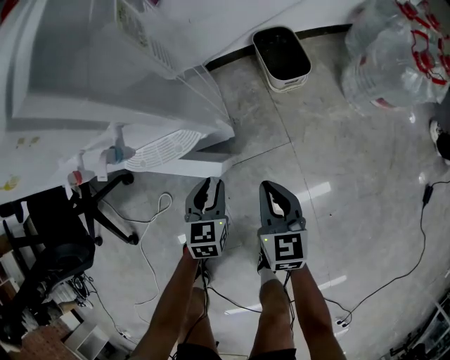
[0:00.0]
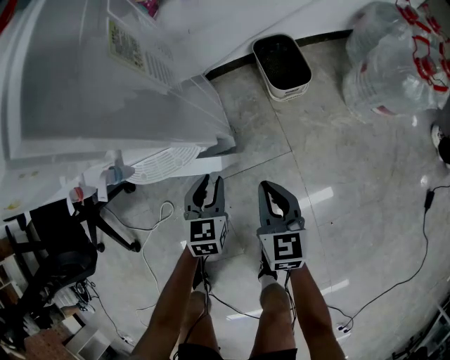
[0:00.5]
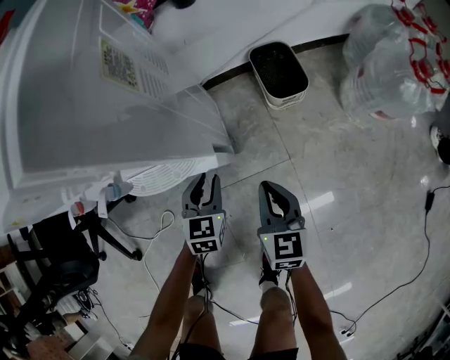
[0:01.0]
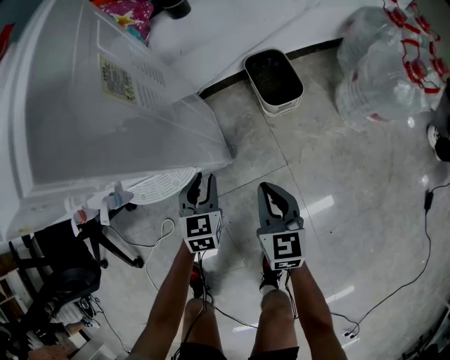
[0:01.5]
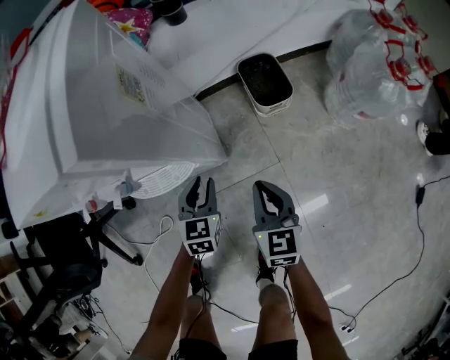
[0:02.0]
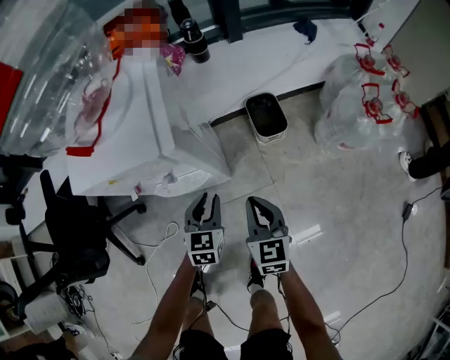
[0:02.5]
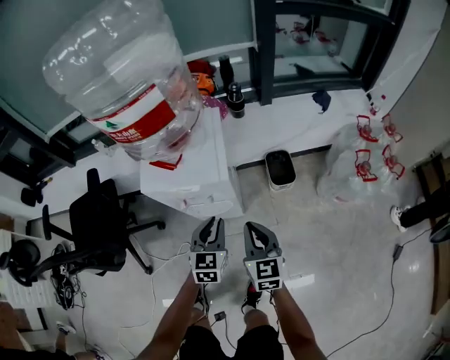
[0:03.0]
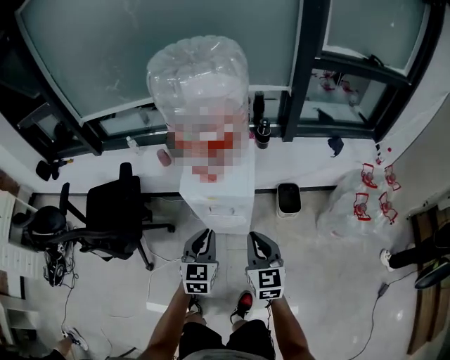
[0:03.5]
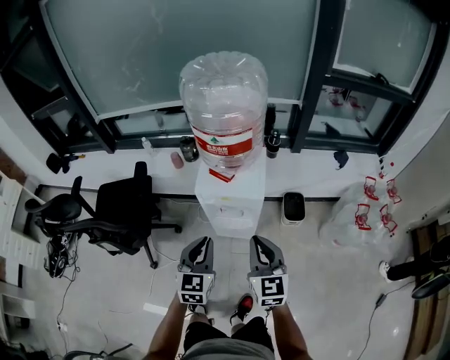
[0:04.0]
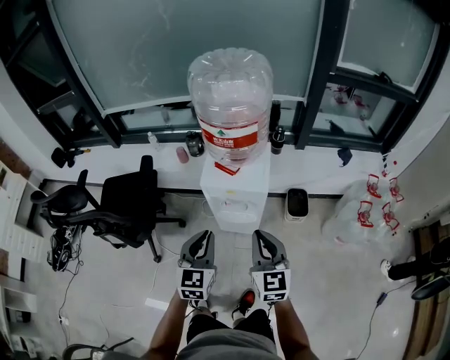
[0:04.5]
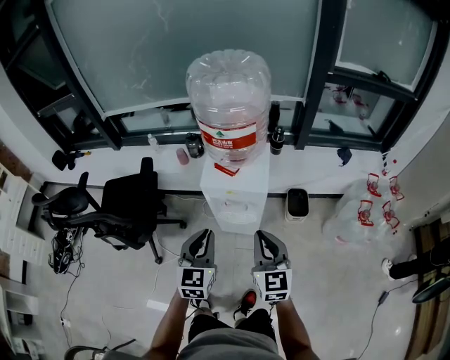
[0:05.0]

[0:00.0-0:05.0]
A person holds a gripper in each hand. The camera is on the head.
0:00.0 to 0:02.5: The grippers both shift upward by approximately 20 cm.
0:02.5 to 0:05.0: Both grippers move upward, some 40 cm. The left gripper changes its angle by approximately 30 degrees. Meanwhile the right gripper rotates some 30 degrees.

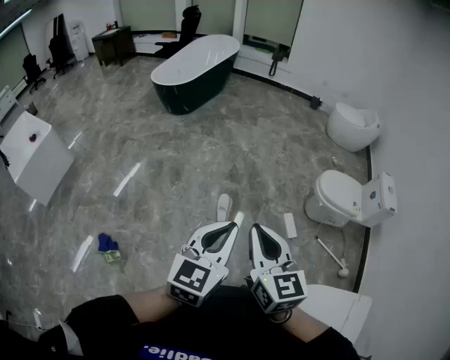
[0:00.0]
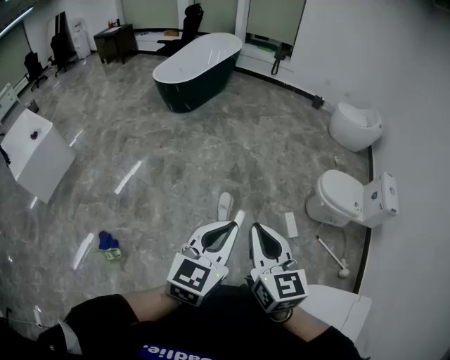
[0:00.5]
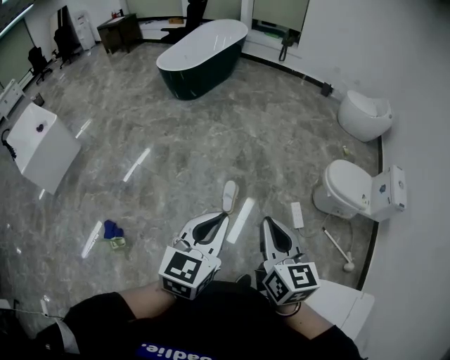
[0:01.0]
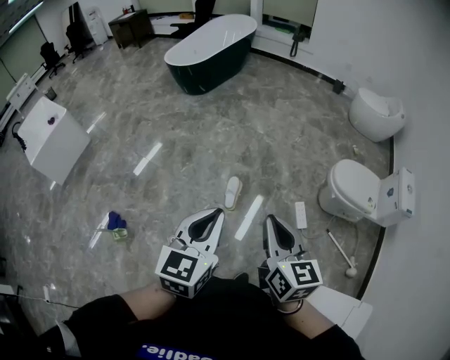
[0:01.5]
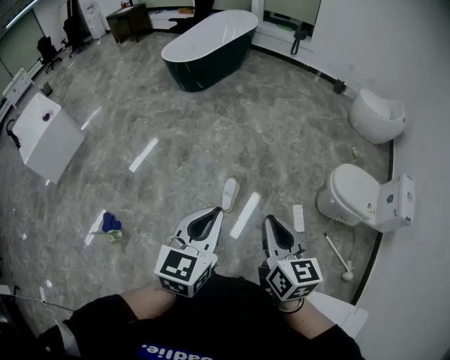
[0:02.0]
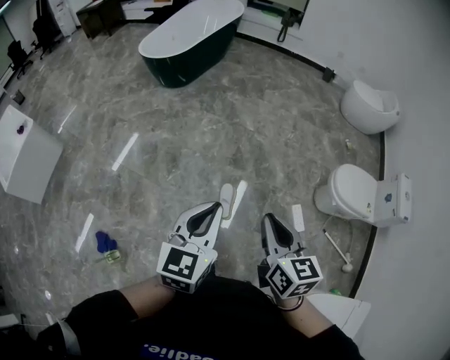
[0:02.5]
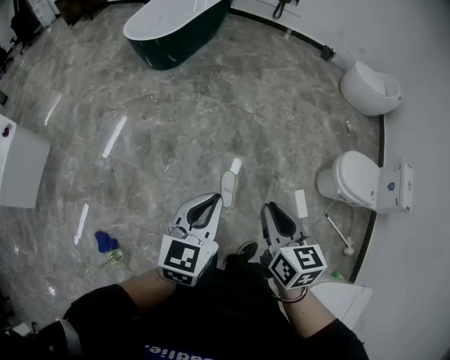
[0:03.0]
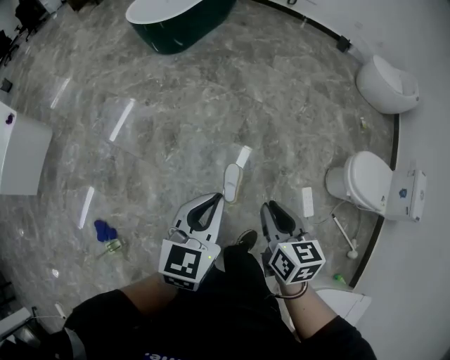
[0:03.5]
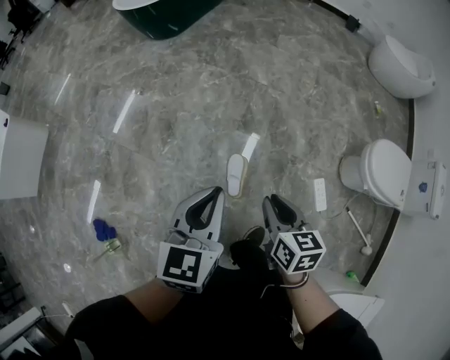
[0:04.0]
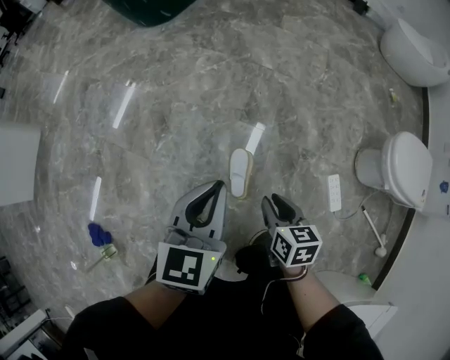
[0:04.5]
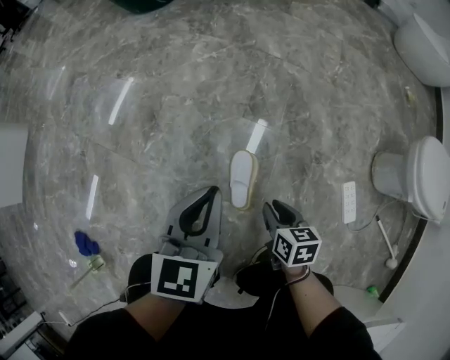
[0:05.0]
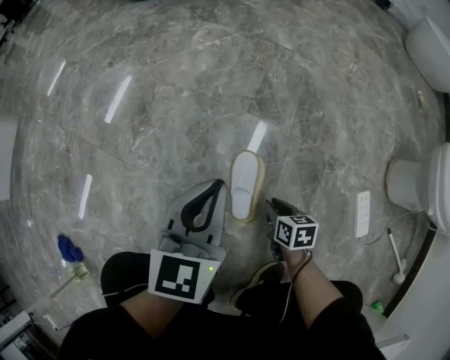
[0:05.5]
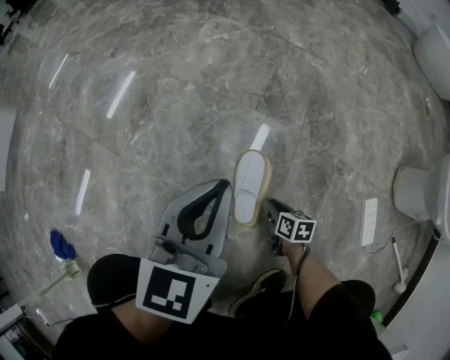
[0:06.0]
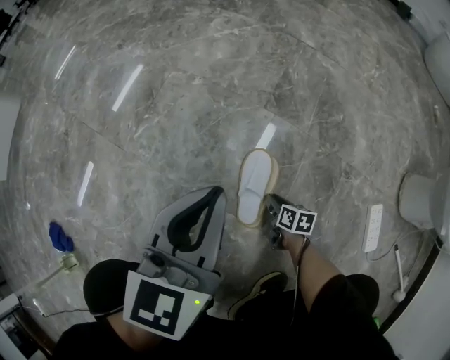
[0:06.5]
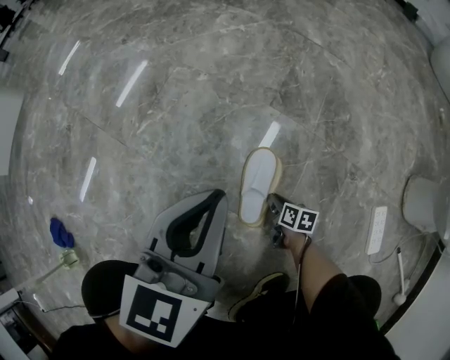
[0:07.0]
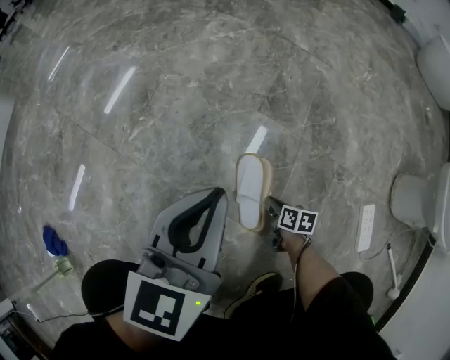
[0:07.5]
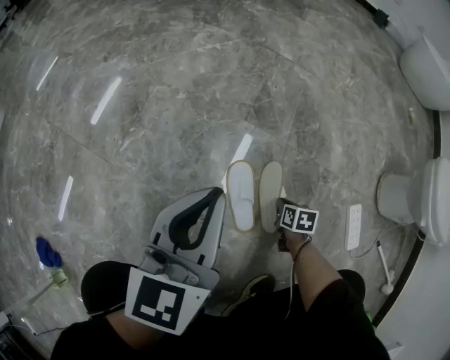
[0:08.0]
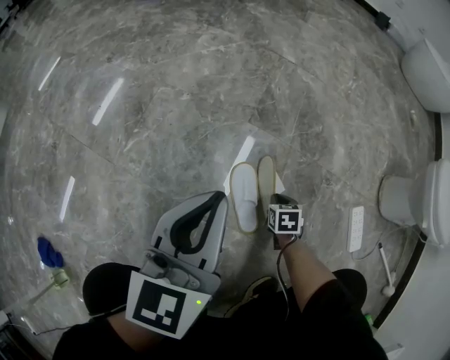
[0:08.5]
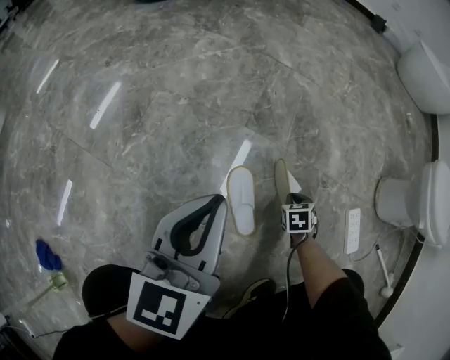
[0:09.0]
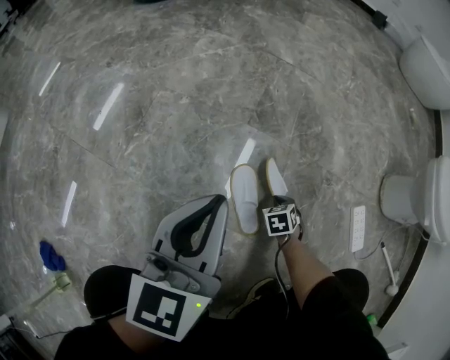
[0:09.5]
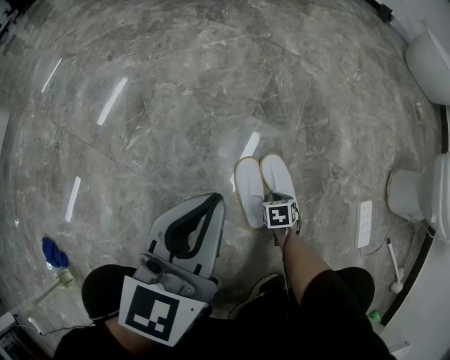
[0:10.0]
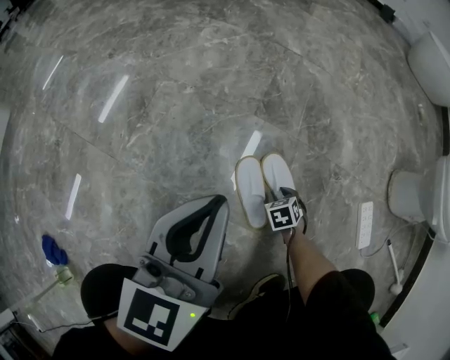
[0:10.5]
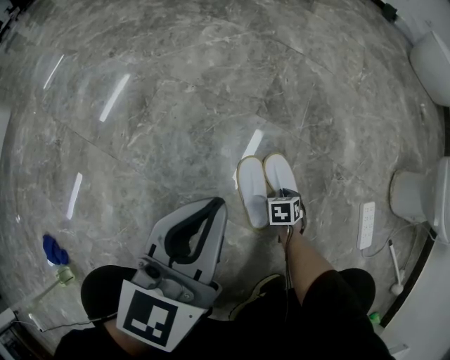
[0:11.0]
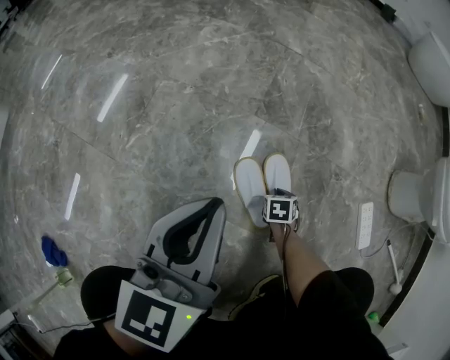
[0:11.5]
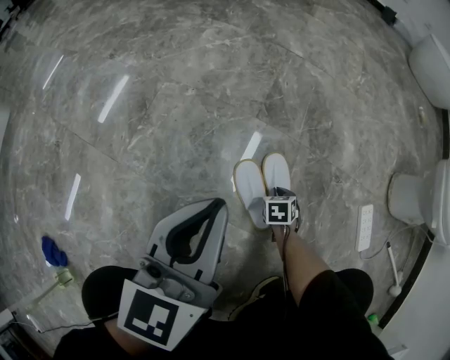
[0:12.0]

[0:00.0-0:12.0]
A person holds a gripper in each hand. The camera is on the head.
0:00.0 to 0:02.0: The left gripper is displaced forward by about 10 cm. Meanwhile the right gripper is displaced to the right, forward and downward by some 15 cm.
0:02.0 to 0:04.0: The right gripper shifts approximately 40 cm downward and forward, and swivels approximately 20 degrees. The left gripper shifts roughly 40 cm forward and downward.
0:04.0 to 0:06.0: The right gripper moves downward, roughly 70 cm, and changes its angle by about 20 degrees. The left gripper moves downward, approximately 40 cm.
0:06.0 to 0:08.0: The right gripper travels to the right by roughly 10 cm.
0:08.0 to 0:10.0: The right gripper shifts by some 5 cm, and swivels about 20 degrees.
0:10.0 to 0:12.0: The right gripper opens and closes again.

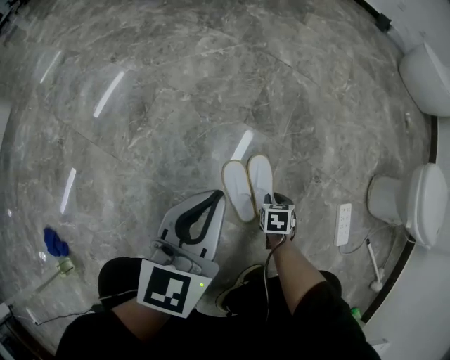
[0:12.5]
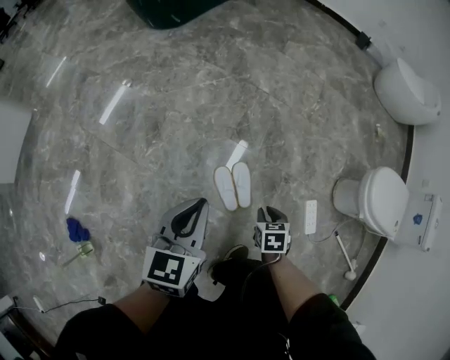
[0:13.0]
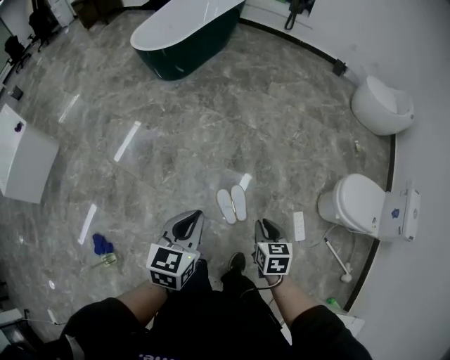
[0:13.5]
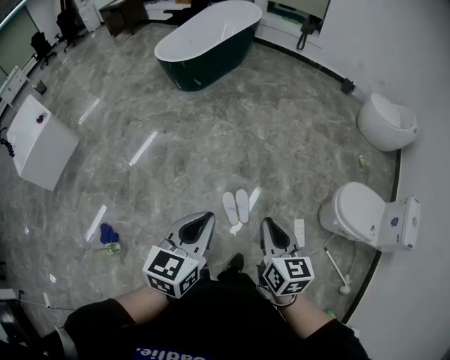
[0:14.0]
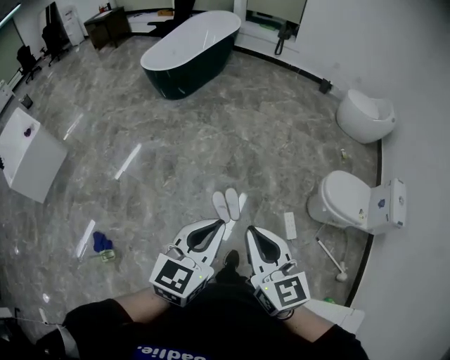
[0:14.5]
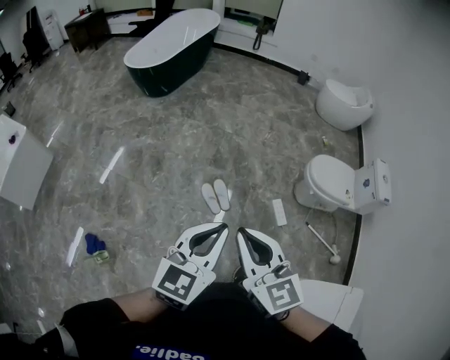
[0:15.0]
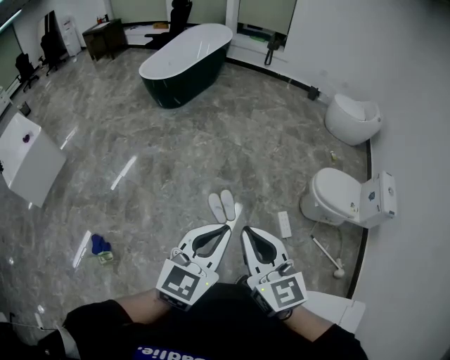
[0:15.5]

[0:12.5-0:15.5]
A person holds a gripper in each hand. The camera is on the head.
0:12.5 to 0:14.0: The left gripper heads upward, covering roughly 60 cm. The right gripper goes about 80 cm upward, and points its fingers roughly 50 degrees further upward.
0:14.0 to 0:15.5: The left gripper shifts approximately 20 cm backward, and rotates roughly 20 degrees, while the right gripper moves backward and upward, about 25 cm, and swivels approximately 20 degrees.

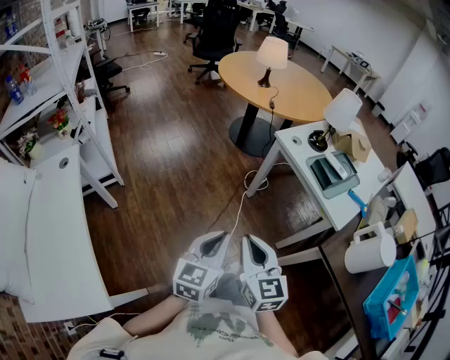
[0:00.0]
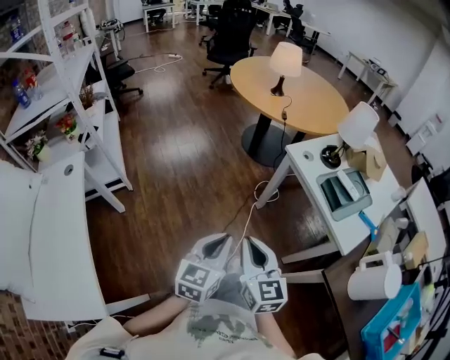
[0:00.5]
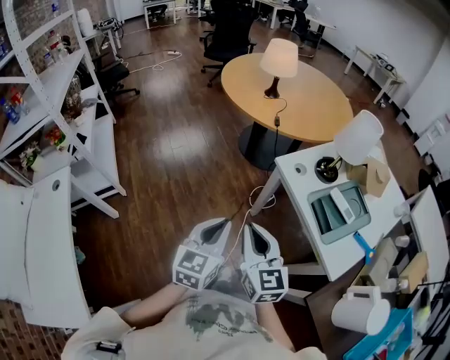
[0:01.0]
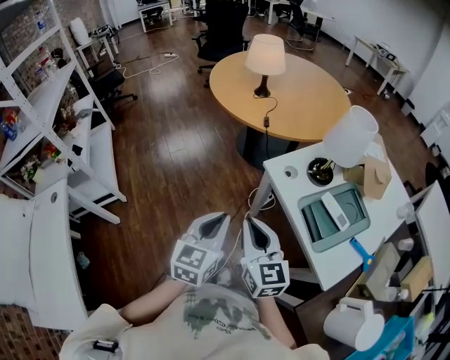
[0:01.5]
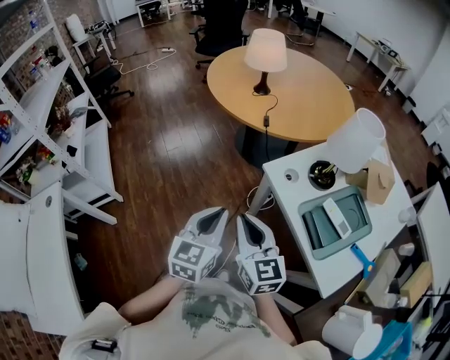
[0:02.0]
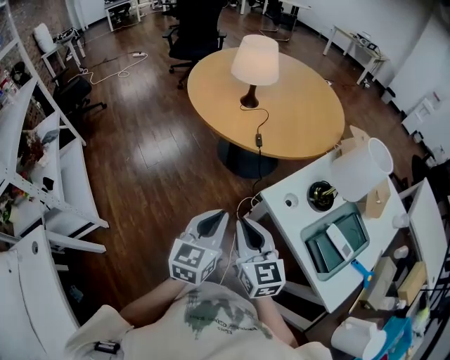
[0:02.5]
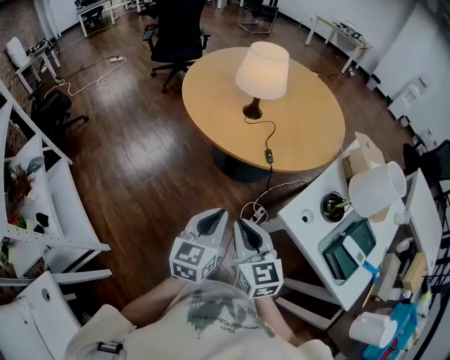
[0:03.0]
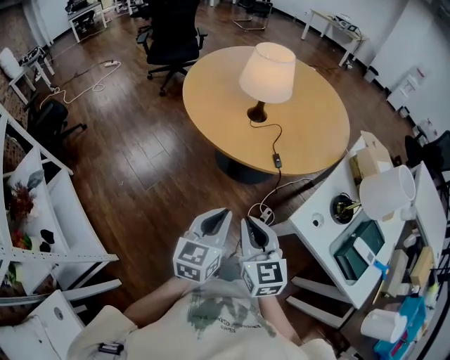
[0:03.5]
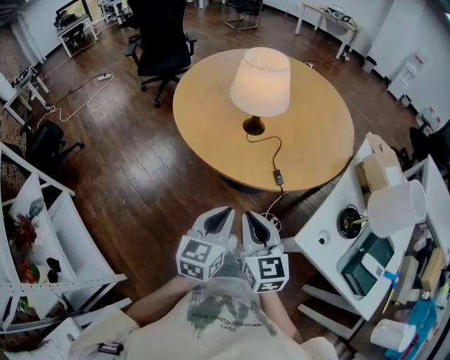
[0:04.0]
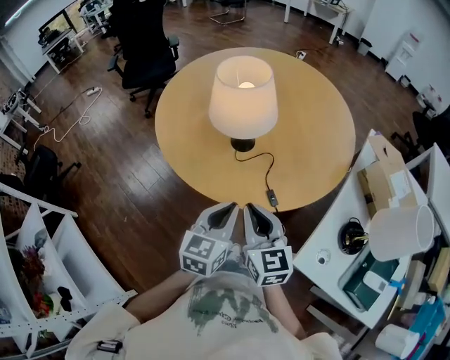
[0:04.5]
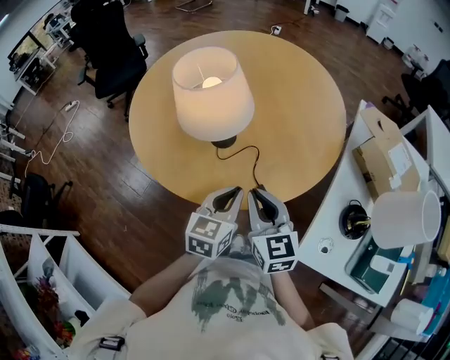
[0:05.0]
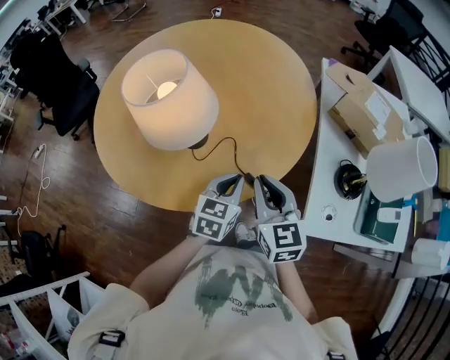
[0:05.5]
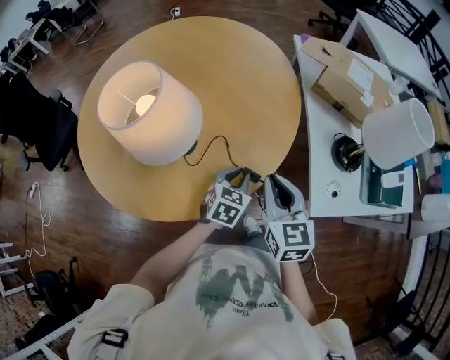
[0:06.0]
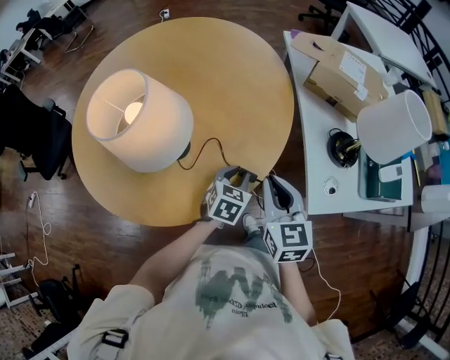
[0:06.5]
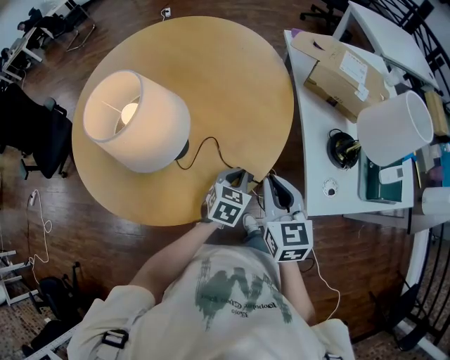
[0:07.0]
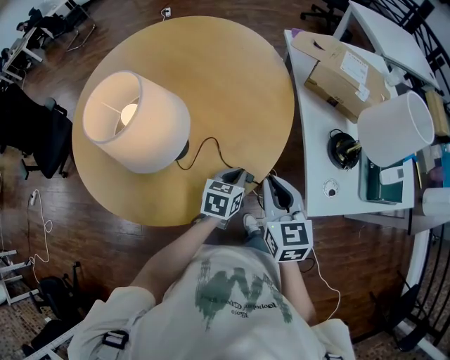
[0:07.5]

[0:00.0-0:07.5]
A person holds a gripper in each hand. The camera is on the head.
0:00.0 to 0:02.0: Both grippers travel together forward and to the right, roughly 35 cm.
0:02.0 to 0:04.0: The two grippers go roughly 40 cm forward and to the left. The right gripper rotates roughly 20 degrees. The left gripper rotates about 20 degrees.
0:04.0 to 0:05.5: The right gripper changes place by some 25 cm, and swivels some 30 degrees; the left gripper changes place by some 25 cm, and turns by roughly 40 degrees.
0:05.5 to 0:07.5: The left gripper heads downward, covering some 10 cm, while the right gripper travels to the right by about 5 cm.
